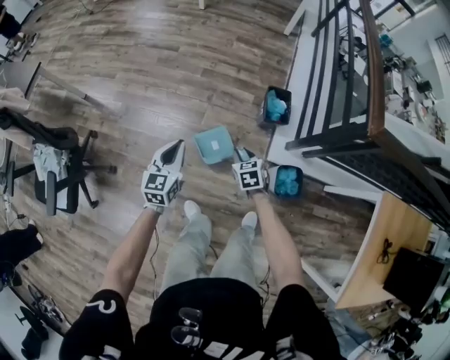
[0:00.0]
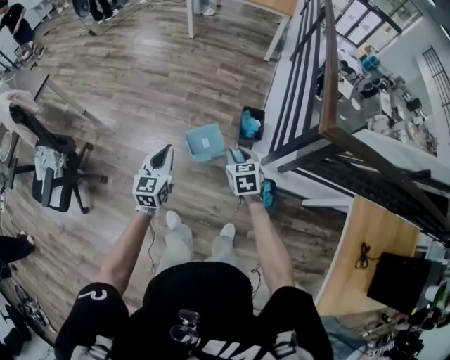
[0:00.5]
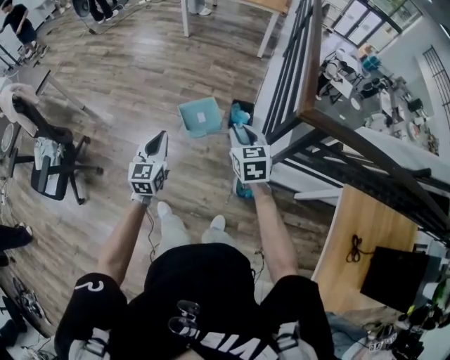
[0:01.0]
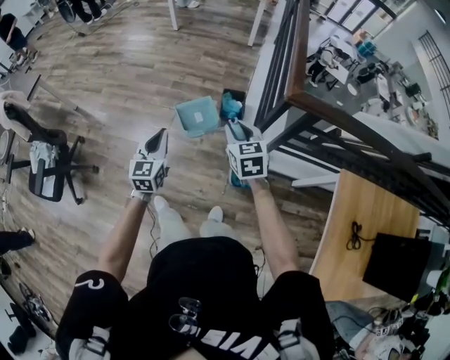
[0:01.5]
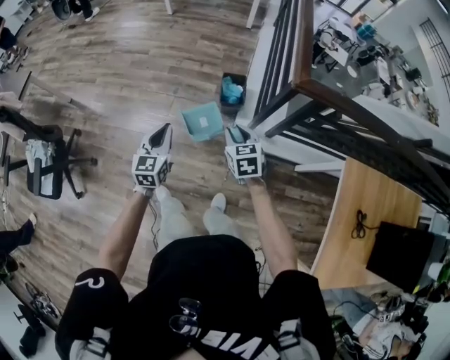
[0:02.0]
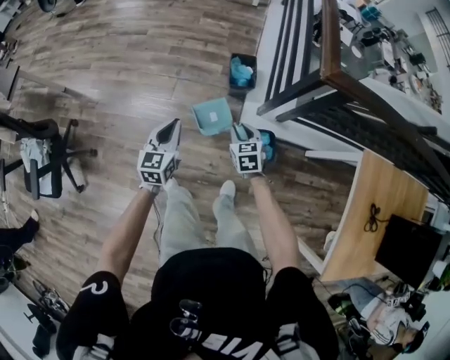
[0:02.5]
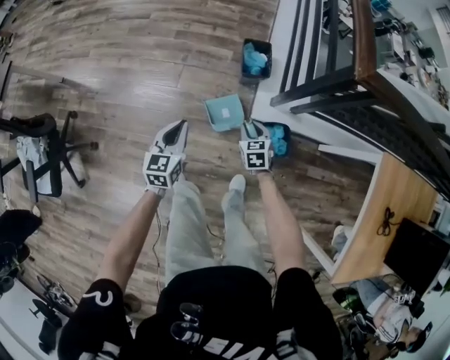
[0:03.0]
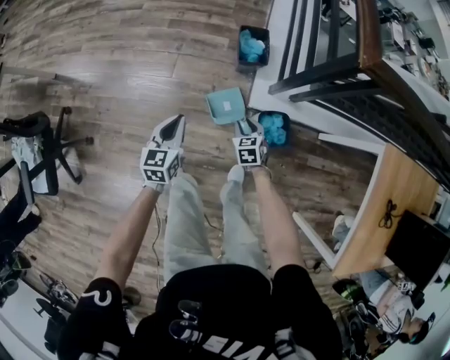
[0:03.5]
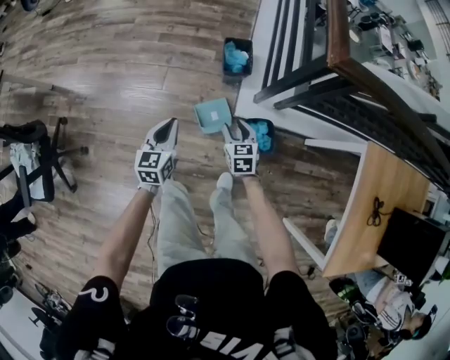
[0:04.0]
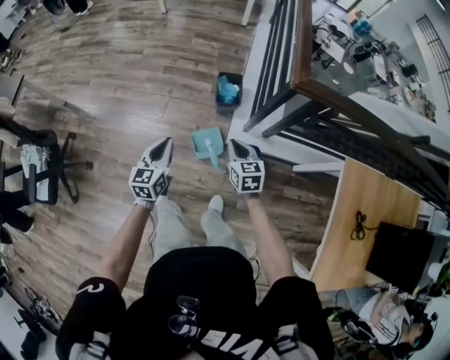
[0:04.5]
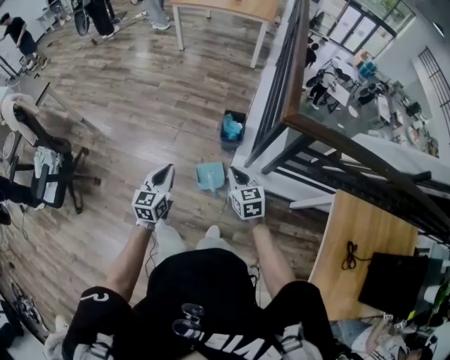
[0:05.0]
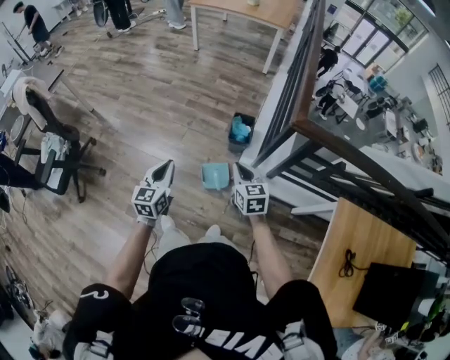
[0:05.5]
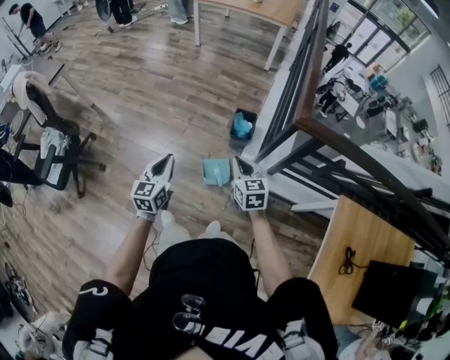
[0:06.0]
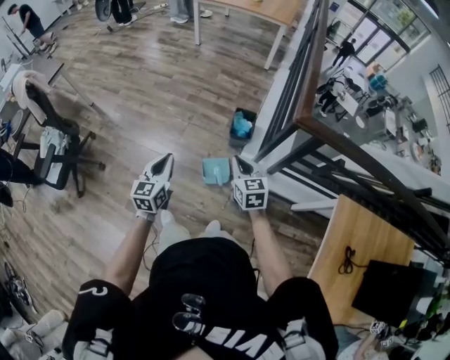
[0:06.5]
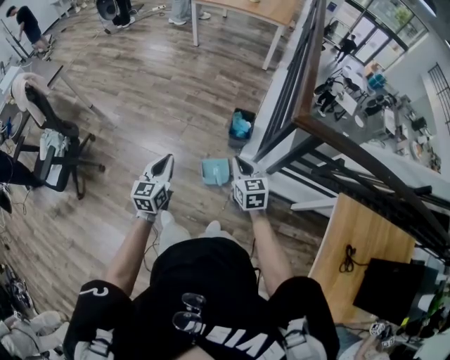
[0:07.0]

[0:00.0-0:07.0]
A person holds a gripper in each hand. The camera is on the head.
0:00.0 to 0:02.0: Both grippers move to the right, upward and backward, about 30 cm.
0:02.0 to 0:03.5: The right gripper is displaced downward by roughly 35 cm. The left gripper heads downward, covering about 25 cm.
0:03.5 to 0:05.0: The right gripper heads upward, covering about 35 cm, swivels some 30 degrees, and closes. The left gripper is displaced upward and backward by about 25 cm.
0:05.0 to 0:07.0: The left gripper ends up about 5 cm from where it was.

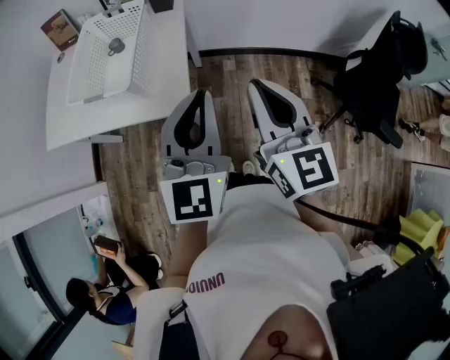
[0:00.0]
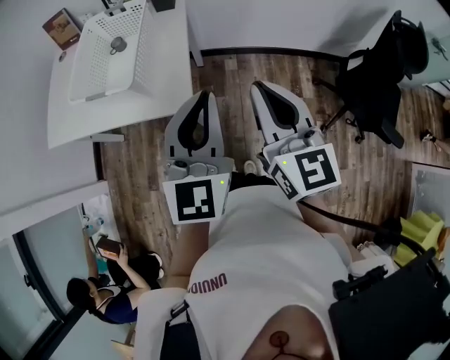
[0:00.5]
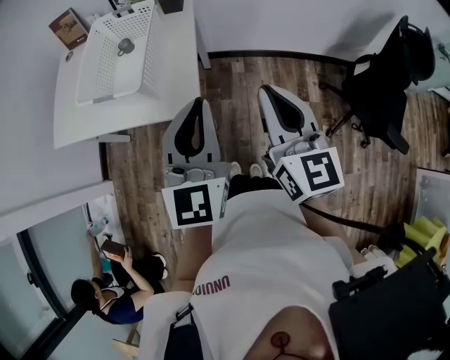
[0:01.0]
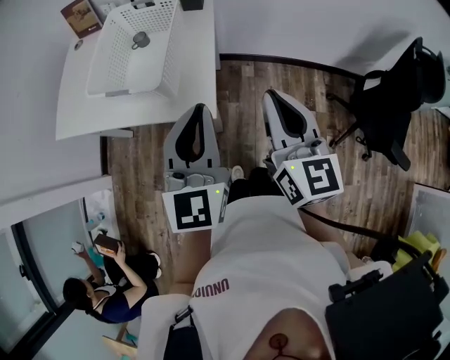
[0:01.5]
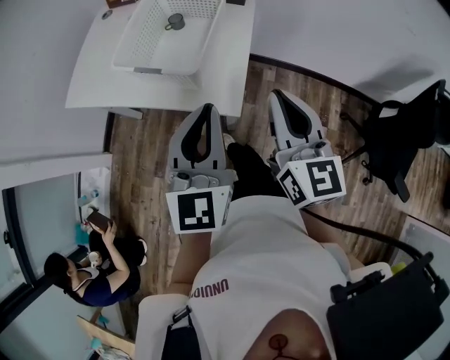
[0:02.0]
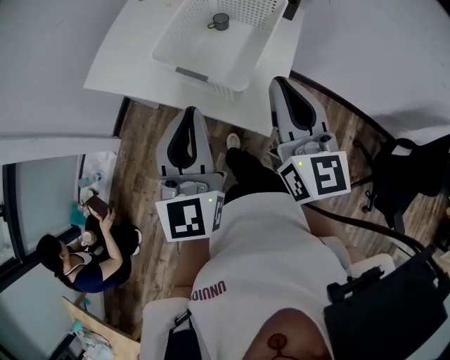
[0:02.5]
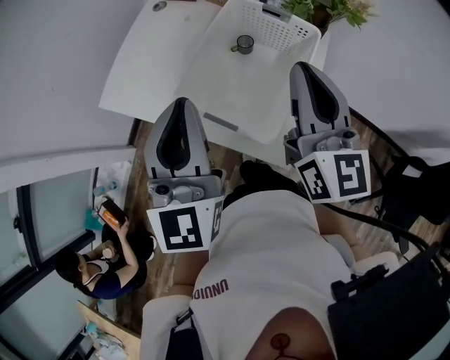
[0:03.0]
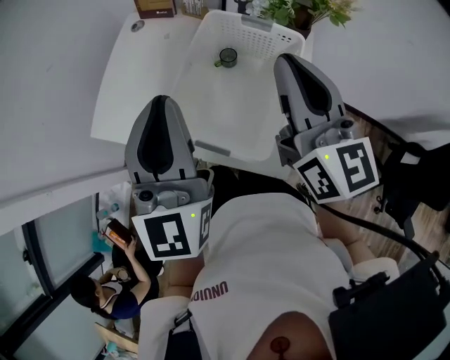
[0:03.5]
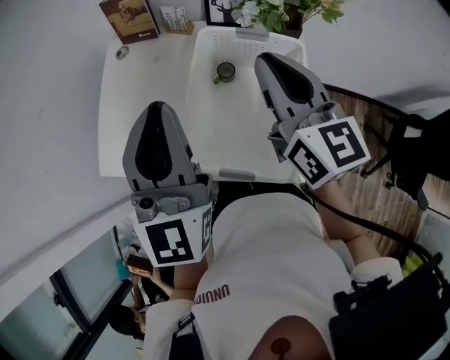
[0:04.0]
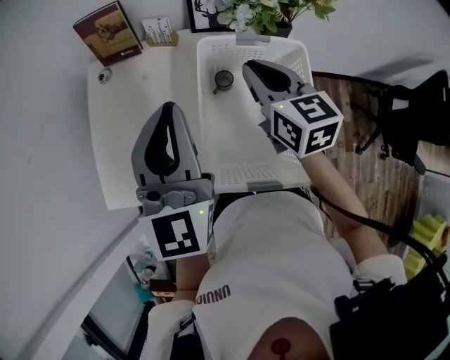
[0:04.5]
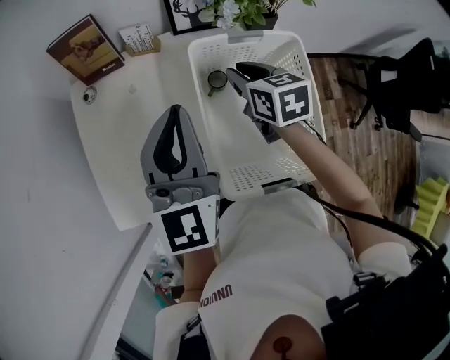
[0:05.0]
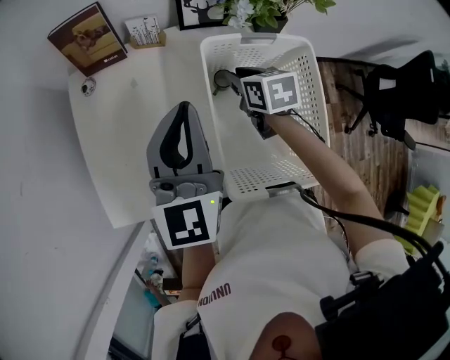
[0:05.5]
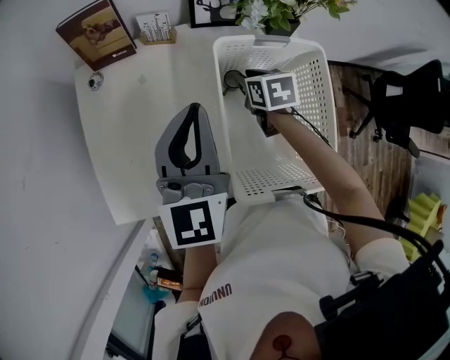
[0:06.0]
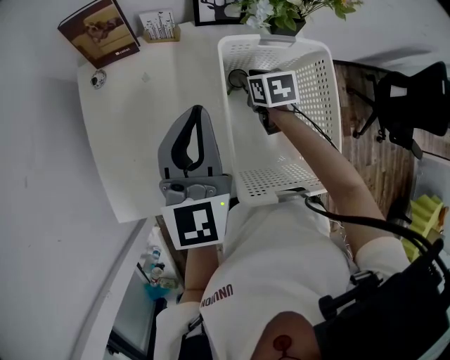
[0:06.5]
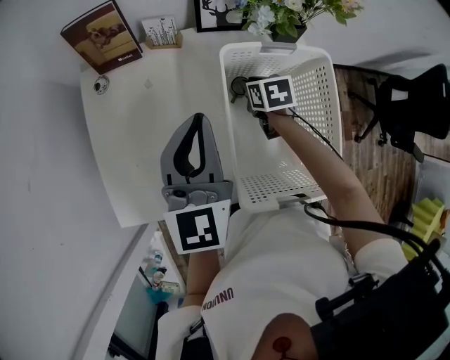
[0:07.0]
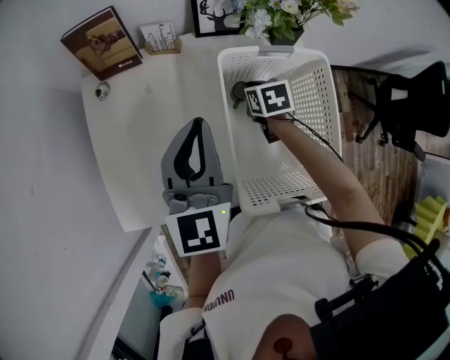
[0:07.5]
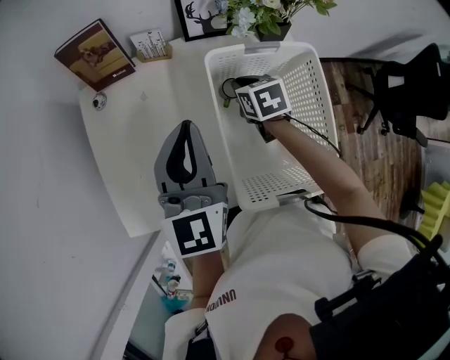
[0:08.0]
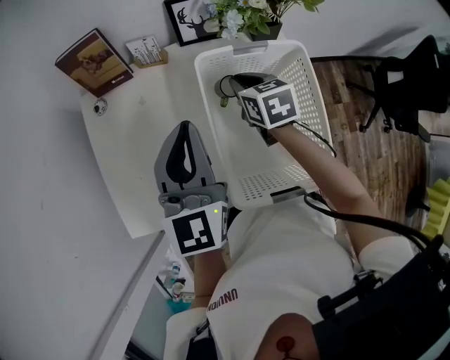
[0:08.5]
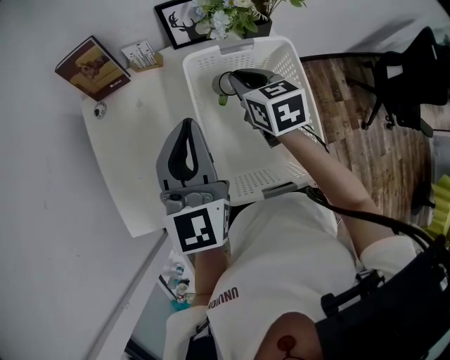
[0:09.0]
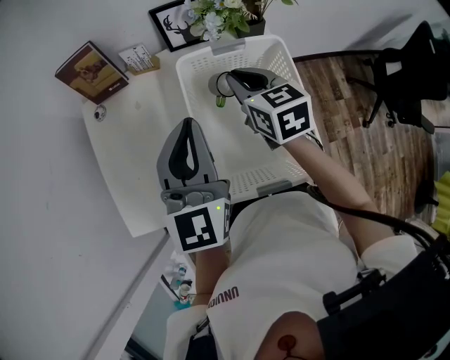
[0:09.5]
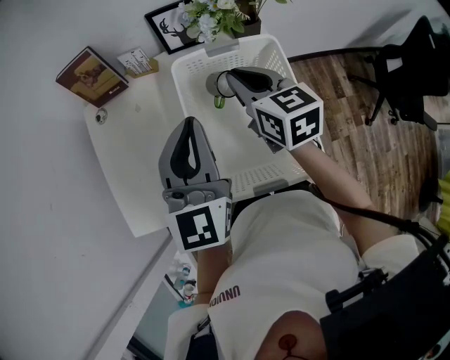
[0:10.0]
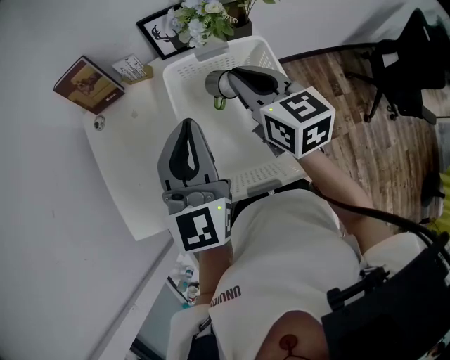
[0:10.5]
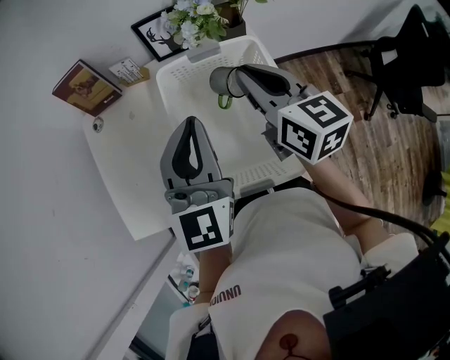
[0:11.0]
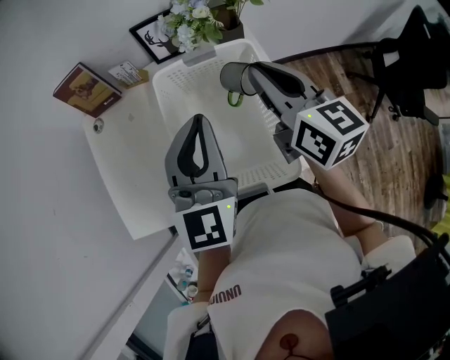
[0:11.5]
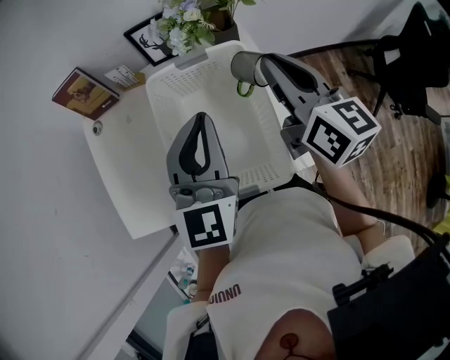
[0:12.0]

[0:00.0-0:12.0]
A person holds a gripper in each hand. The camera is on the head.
0:00.0 to 0:02.0: The right gripper moves to the left and forward, about 10 cm. Meanwhile the left gripper travels to the left by some 15 cm.
0:02.0 to 0:04.0: The right gripper is displaced forward by about 30 cm. Meanwhile the left gripper goes approximately 35 cm forward and to the left.
0:04.0 to 0:06.0: The right gripper travels downward and forward by approximately 30 cm, tips its fingers downward by roughly 50 degrees, and opens; the left gripper is displaced forward and downward by about 15 cm, and turns by roughly 30 degrees.
0:06.0 to 0:08.0: The grippers stay close to where they were, moving slightly.
0:08.0 to 0:10.0: The right gripper goes some 15 cm upward, and turns by about 30 degrees. Meanwhile the left gripper shifts about 5 cm to the right.
0:10.0 to 0:12.0: The left gripper is displaced to the right by approximately 10 cm, while the right gripper heads to the right and upward, covering about 15 cm, and turns by roughly 20 degrees.

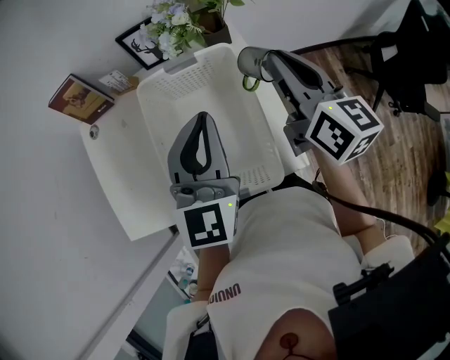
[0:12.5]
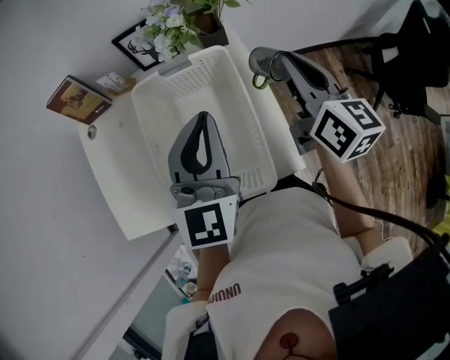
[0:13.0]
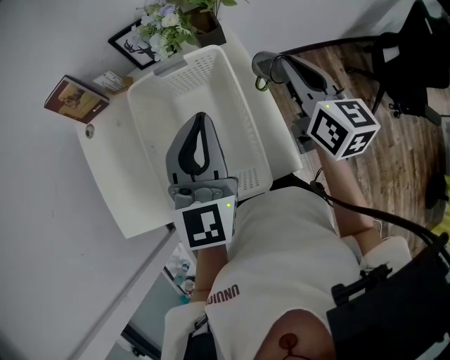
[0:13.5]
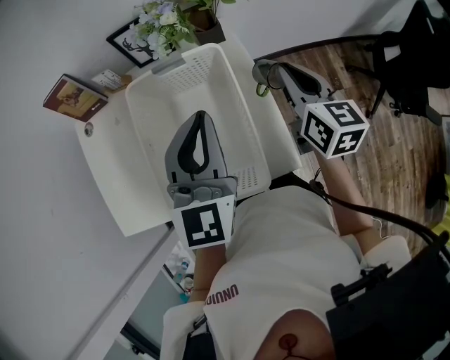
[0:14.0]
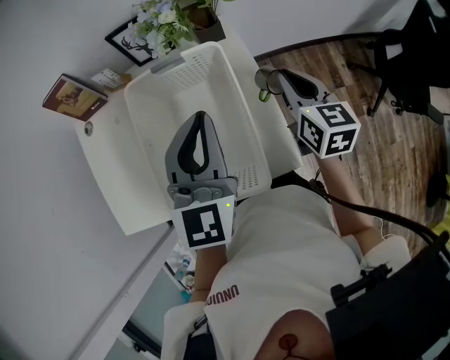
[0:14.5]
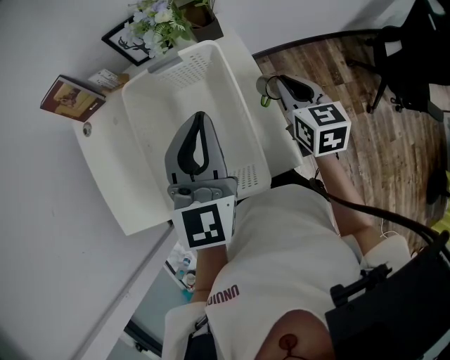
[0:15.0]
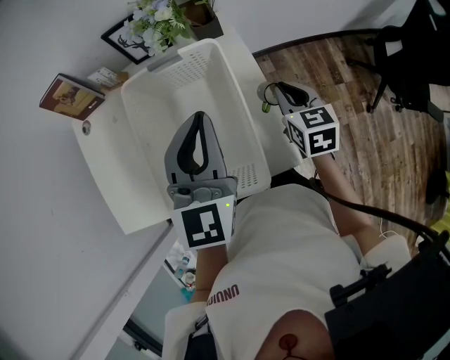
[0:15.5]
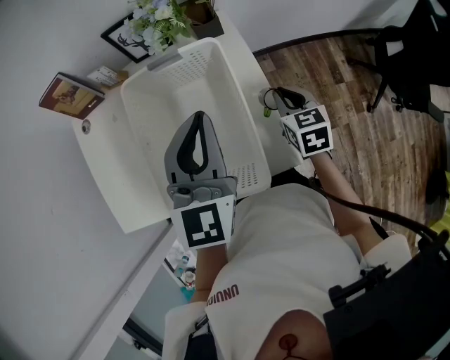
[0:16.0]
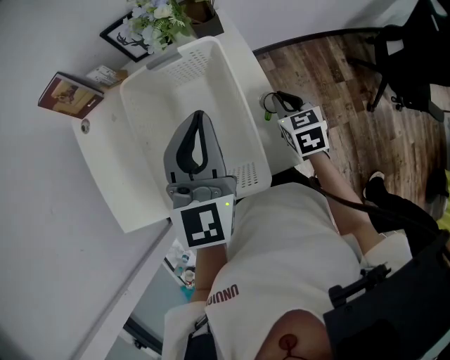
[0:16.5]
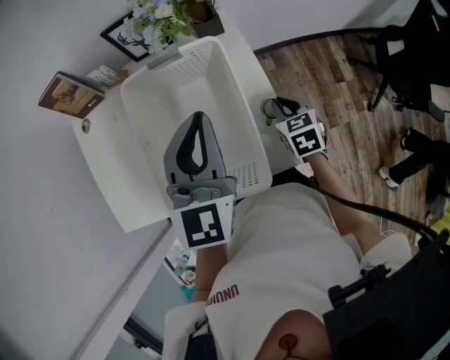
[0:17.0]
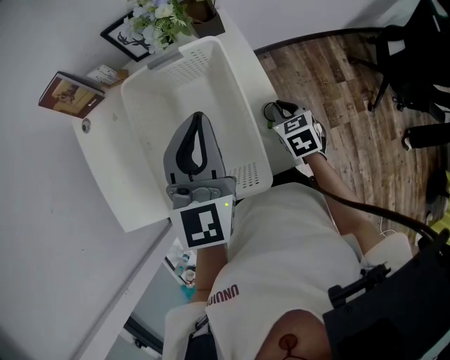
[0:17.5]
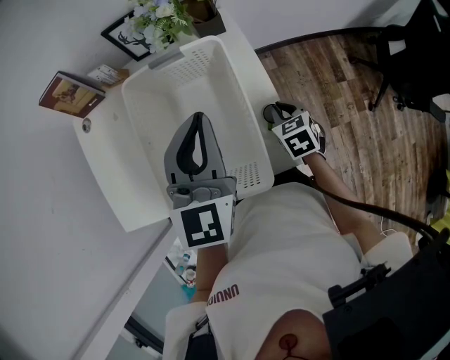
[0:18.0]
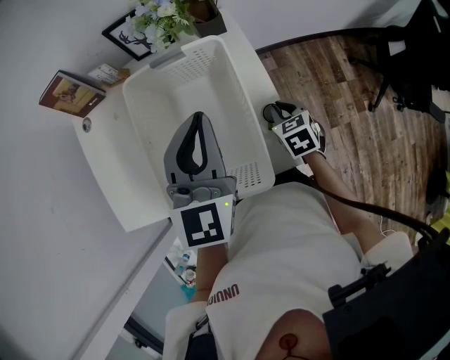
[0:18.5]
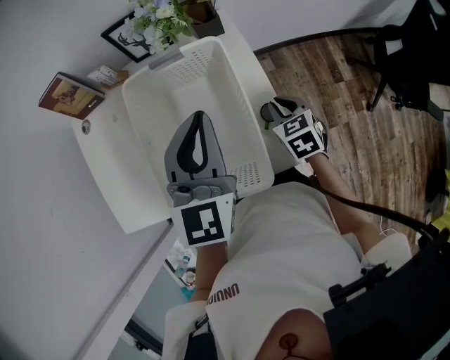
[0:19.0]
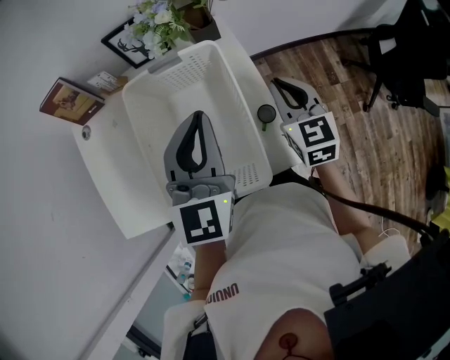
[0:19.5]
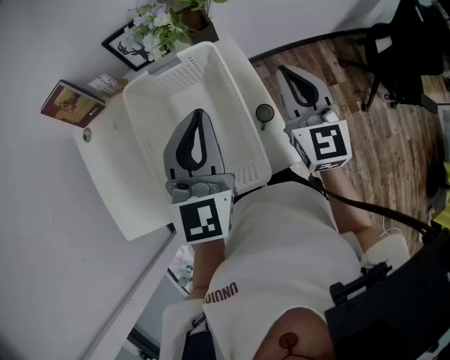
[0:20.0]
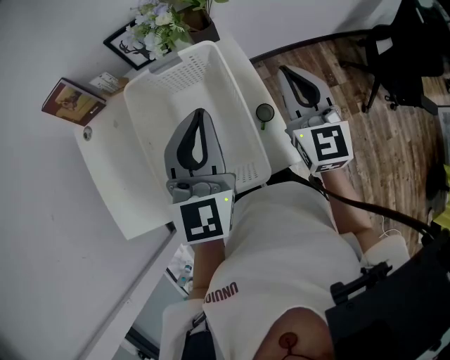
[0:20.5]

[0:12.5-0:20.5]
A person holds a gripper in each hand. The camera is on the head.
0:12.5 to 0:14.5: The right gripper heads downward, covering some 10 cm, and rotates approximately 20 degrees.
0:14.5 to 0:16.5: The right gripper moves downward, approximately 15 cm, and changes its angle by about 20 degrees.
0:16.5 to 0:18.5: The right gripper shifts by some 5 cm.
0:18.5 to 0:20.5: The right gripper moves upward, roughly 25 cm, and angles its fingers upward, by about 40 degrees.
